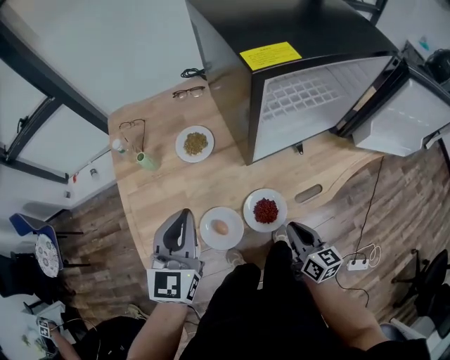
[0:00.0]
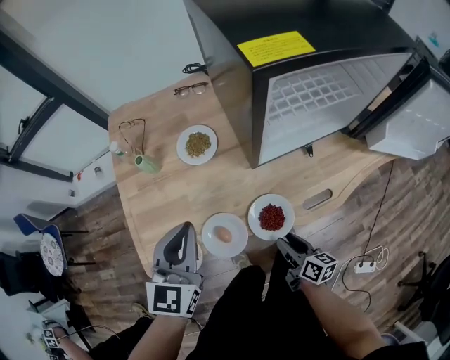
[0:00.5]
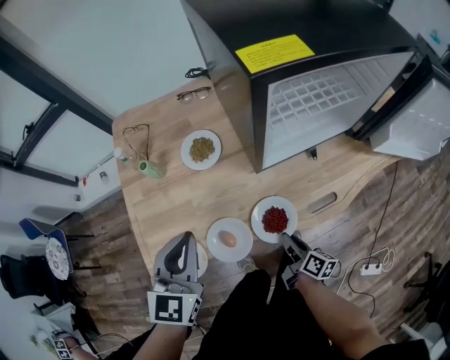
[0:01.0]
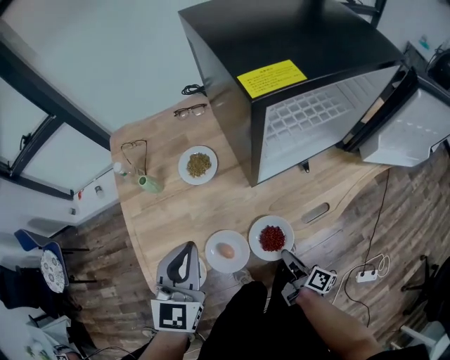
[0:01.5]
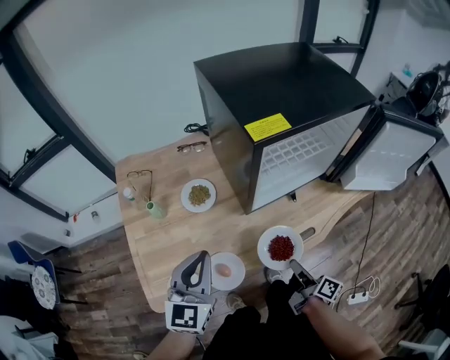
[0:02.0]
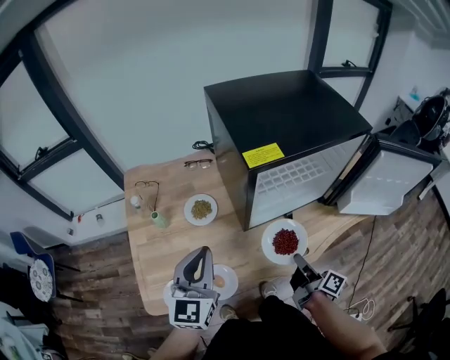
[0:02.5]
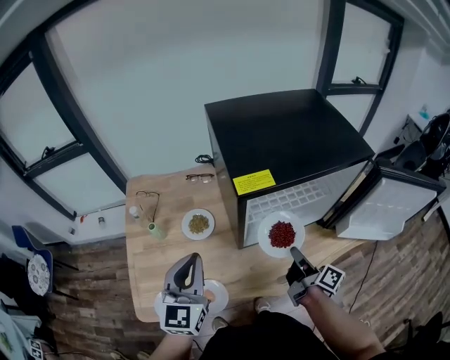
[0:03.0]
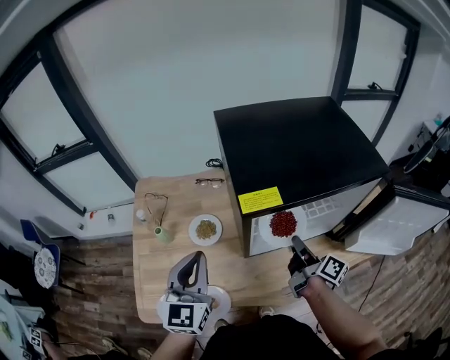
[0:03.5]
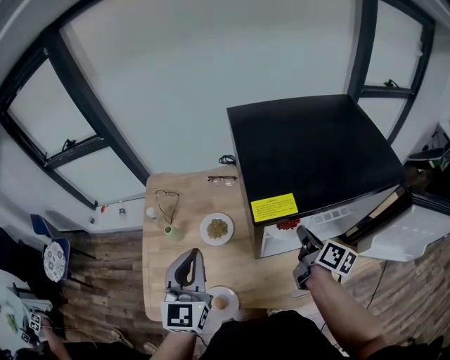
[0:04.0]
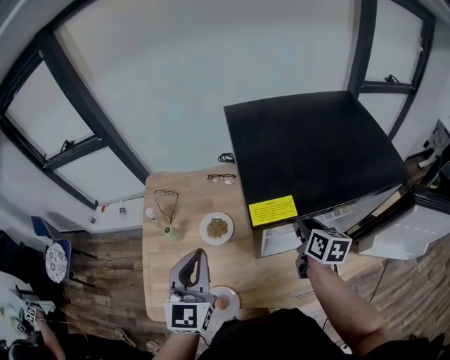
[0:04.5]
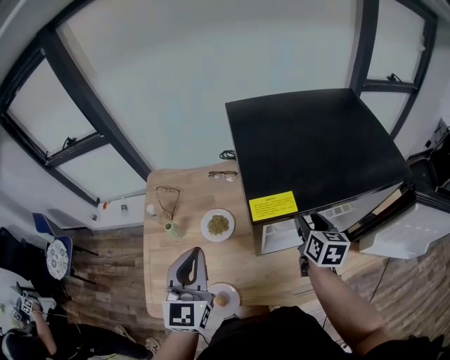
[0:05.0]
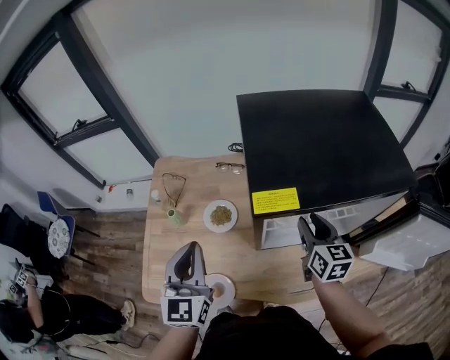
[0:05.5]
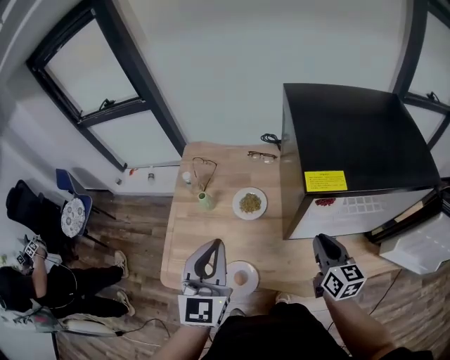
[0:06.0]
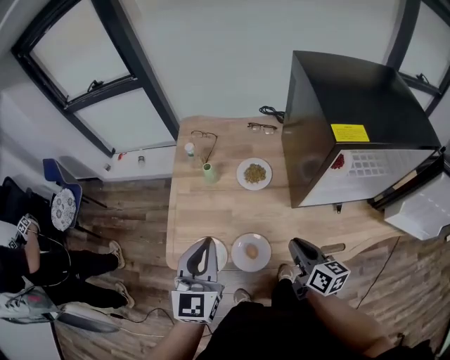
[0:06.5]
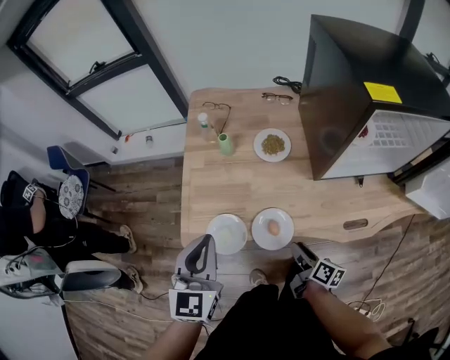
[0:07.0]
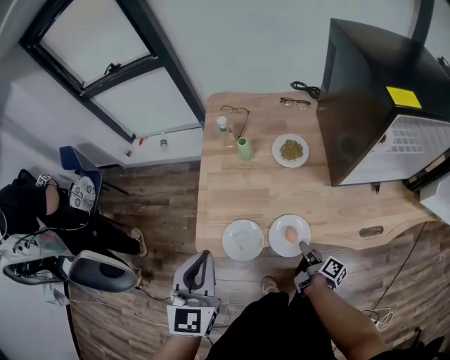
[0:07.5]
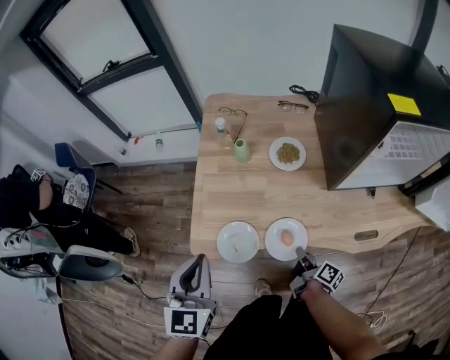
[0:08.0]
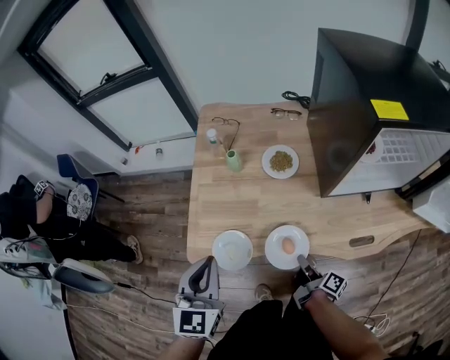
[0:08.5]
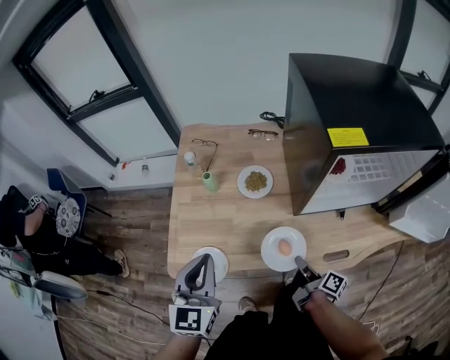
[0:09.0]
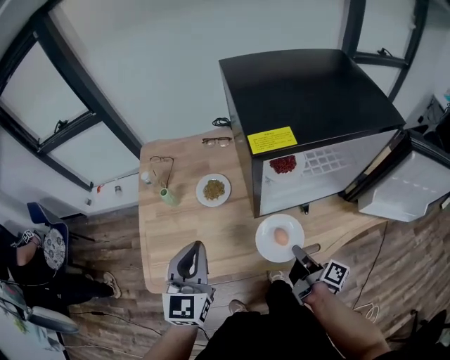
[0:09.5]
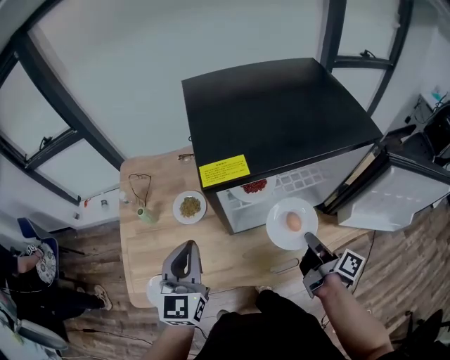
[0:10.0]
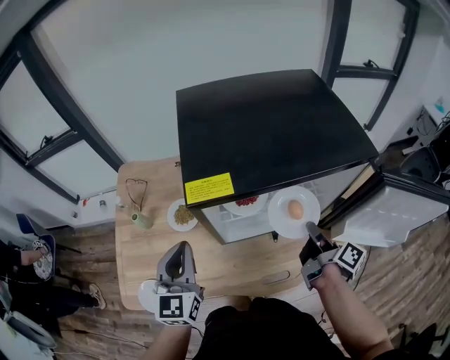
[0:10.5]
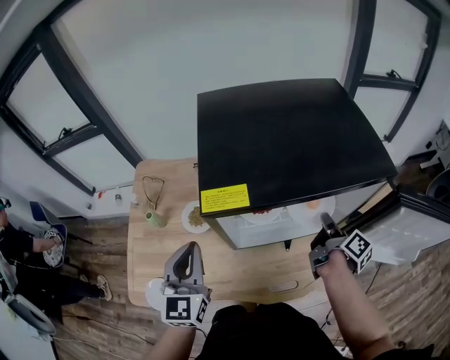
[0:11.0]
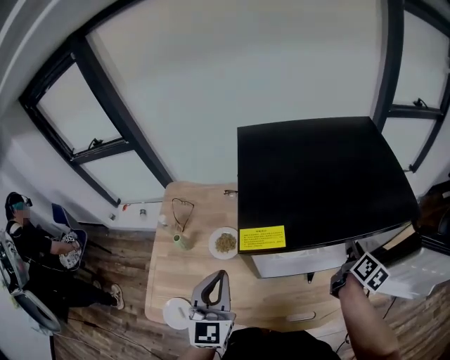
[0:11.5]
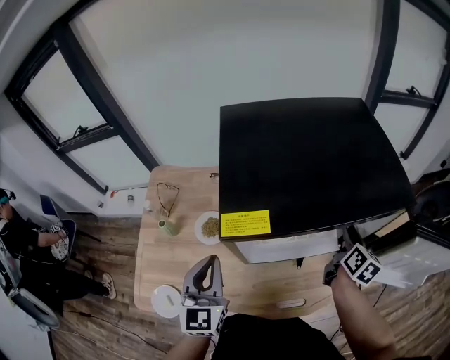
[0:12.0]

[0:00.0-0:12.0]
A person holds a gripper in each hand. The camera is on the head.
0:00.0 to 0:02.0: The right gripper goes downward and returns, roughly 10 cm each way, twists approximately 40 degrees clockwise, seen from behind, and opens and closes again.
0:02.0 to 0:04.0: The left gripper is displaced forward and upward by about 15 cm, and swivels about 20 degrees. Meanwhile the right gripper is displaced forward and upward by roughly 30 cm.
0:04.0 to 0:06.0: The left gripper goes approximately 5 cm backward; the right gripper heads backward and to the left, covering roughly 10 cm, swivels about 40 degrees, and opens, then closes once more.
0:06.0 to 0:08.0: The right gripper moves downward, to the left and backward, some 35 cm, twists approximately 60 degrees clockwise, seen from behind, and opens, then closes once more. Meanwhile the left gripper travels to the left, backward and downward by some 25 cm.
0:08.0 to 0:10.0: The left gripper shifts some 35 cm to the right and forward, while the right gripper shifts approximately 40 cm to the right and upward.
0:10.0 to 0:12.0: The right gripper heads forward and to the right, covering approximately 20 cm, twists roughly 40 degrees counterclockwise, seen from behind, and opens its fingers.

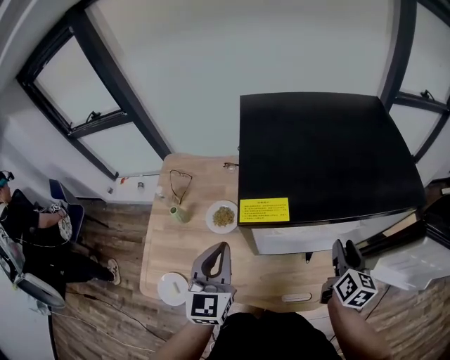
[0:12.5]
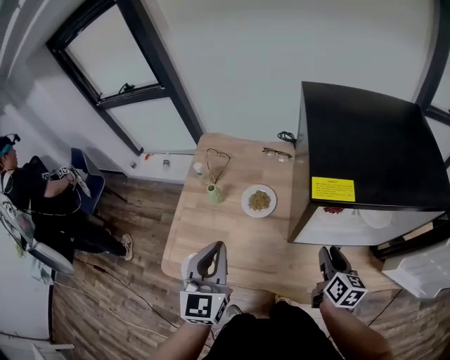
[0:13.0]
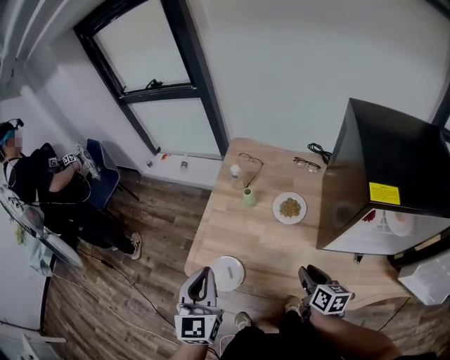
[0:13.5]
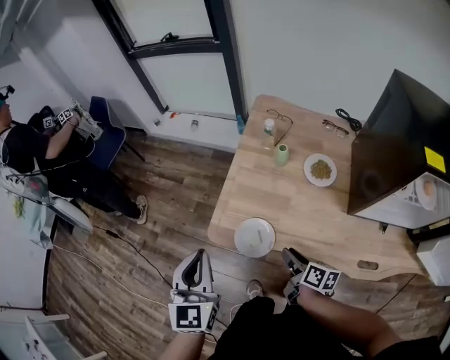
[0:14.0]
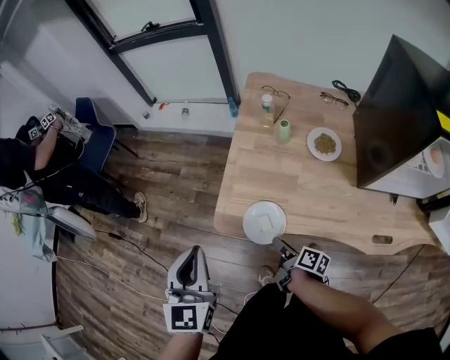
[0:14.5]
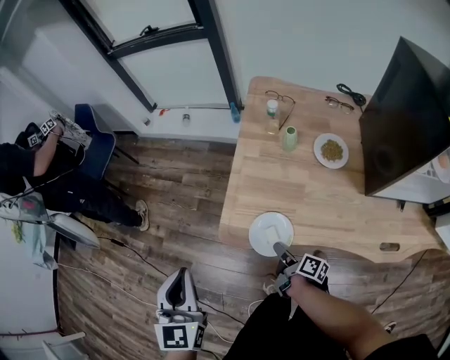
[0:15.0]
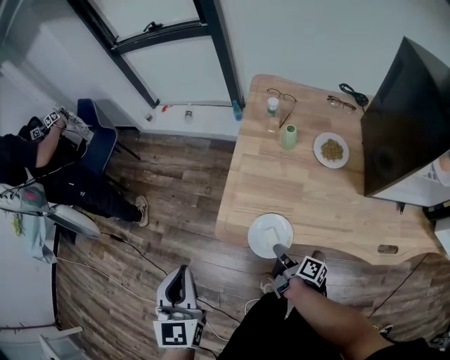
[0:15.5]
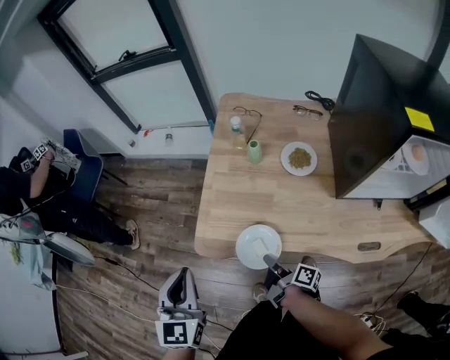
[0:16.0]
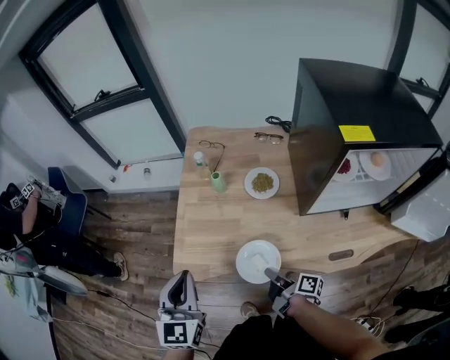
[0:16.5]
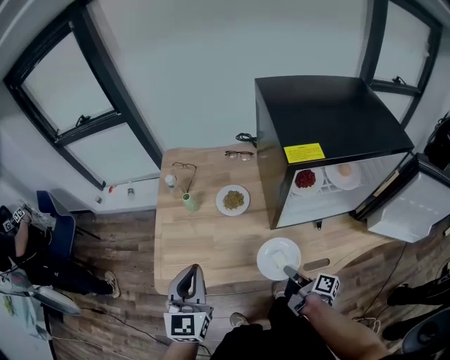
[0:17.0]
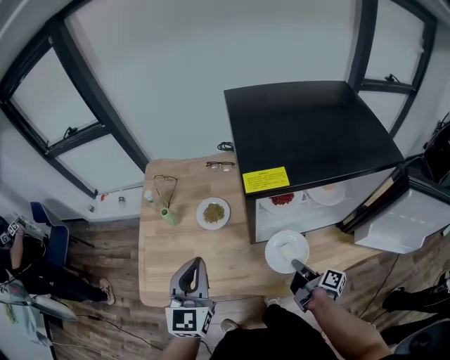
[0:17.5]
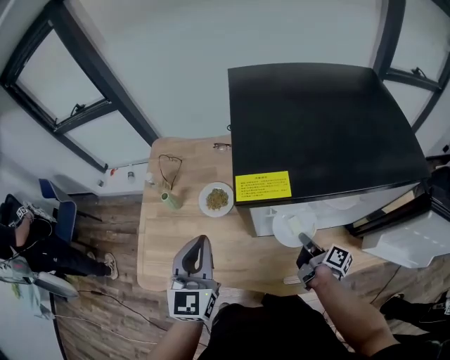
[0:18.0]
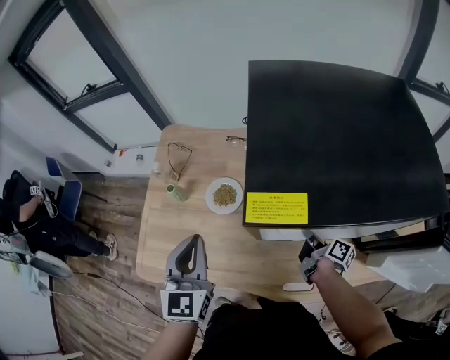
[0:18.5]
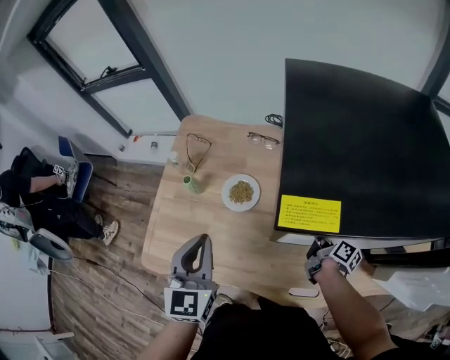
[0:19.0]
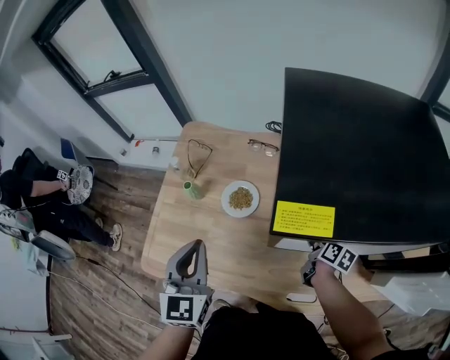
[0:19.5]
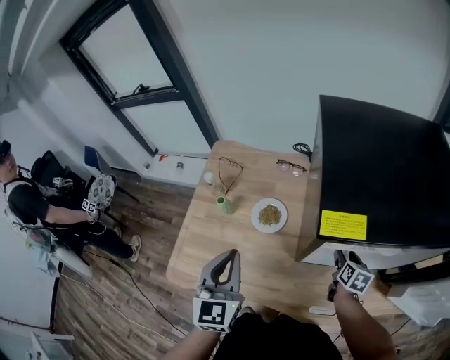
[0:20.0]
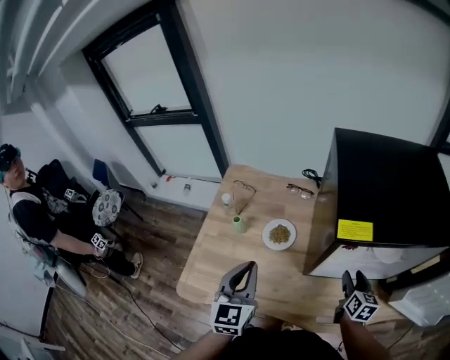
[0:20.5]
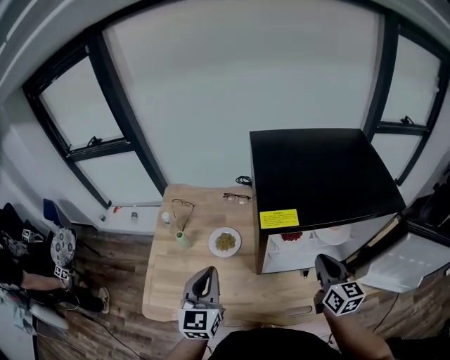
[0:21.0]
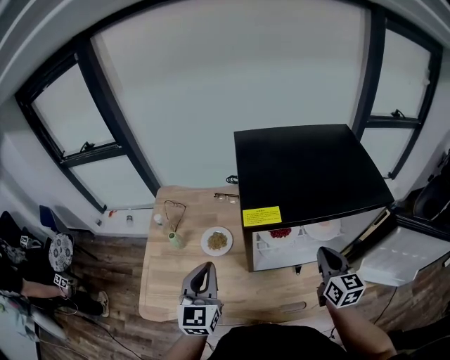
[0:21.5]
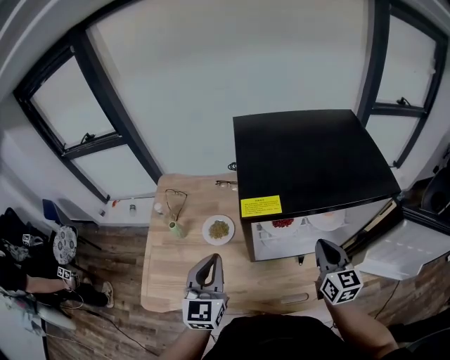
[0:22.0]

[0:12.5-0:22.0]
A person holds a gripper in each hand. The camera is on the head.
0:12.5 to 0:14.5: Both grippers are carried roughly 50 cm. The left gripper rotates some 20 degrees; the right gripper rotates some 60 degrees.
0:14.5 to 0:16.5: The left gripper shifts about 15 cm to the right, while the right gripper goes about 15 cm to the right and upward, and closes its fingers.
0:16.5 to 0:18.0: The right gripper goes about 35 cm to the right. The left gripper is displaced to the right and forward by approximately 30 cm.
0:18.0 to 0:20.0: The right gripper heads forward, covering approximately 5 cm, twists some 50 degrees counterclockwise, seen from behind, and opens up. Meanwhile the left gripper heads to the left, covering roughly 5 cm.
0:20.0 to 0:22.0: The left gripper goes approximately 10 cm to the right; the right gripper heads upward, covering roughly 20 cm, swivels roughly 40 degrees, and closes up.

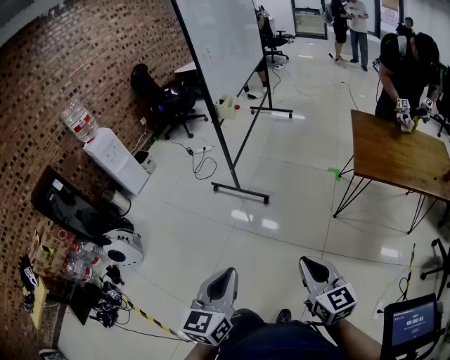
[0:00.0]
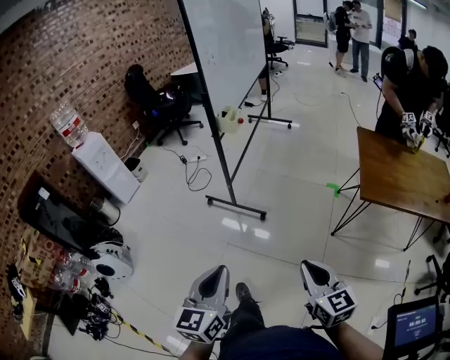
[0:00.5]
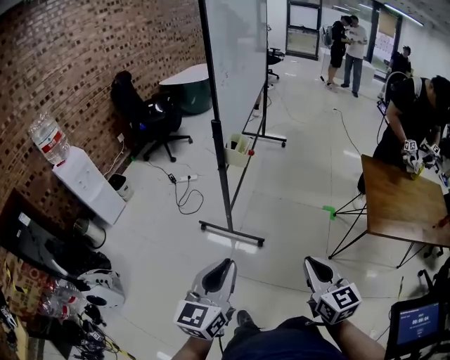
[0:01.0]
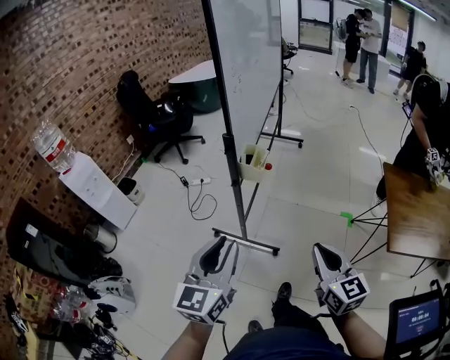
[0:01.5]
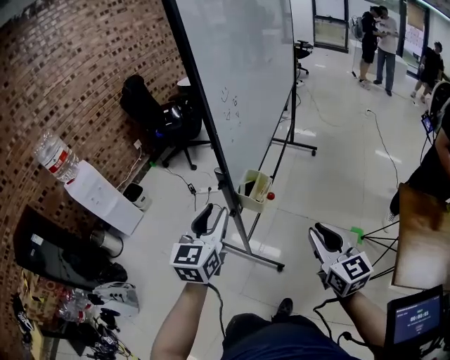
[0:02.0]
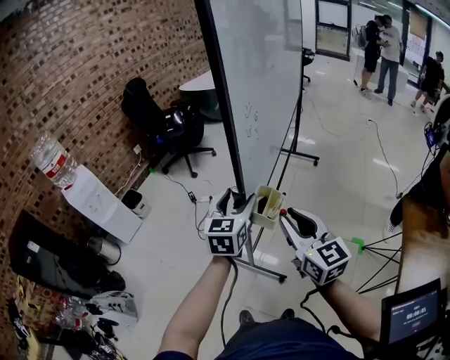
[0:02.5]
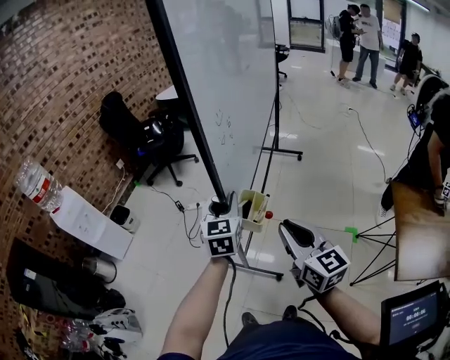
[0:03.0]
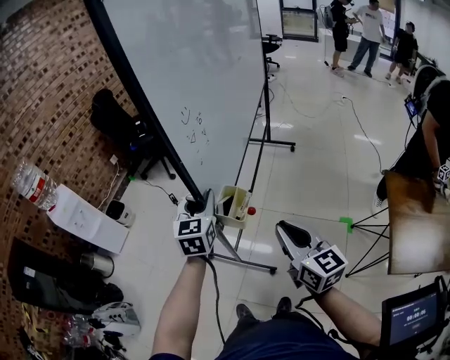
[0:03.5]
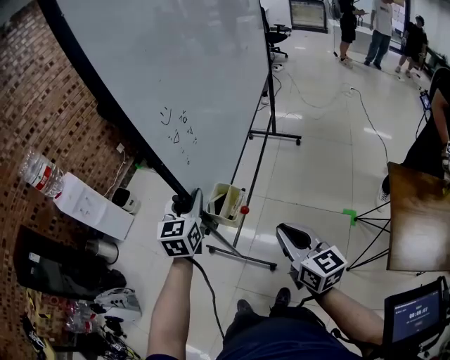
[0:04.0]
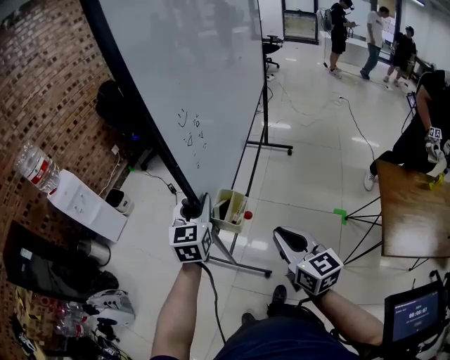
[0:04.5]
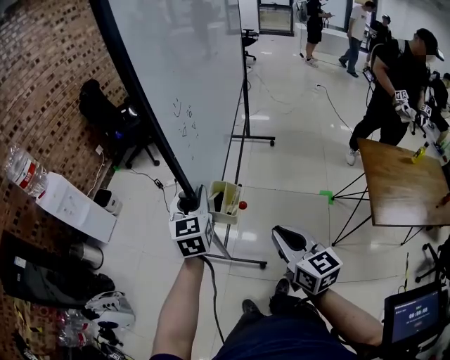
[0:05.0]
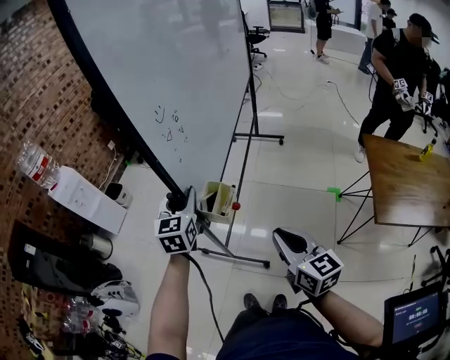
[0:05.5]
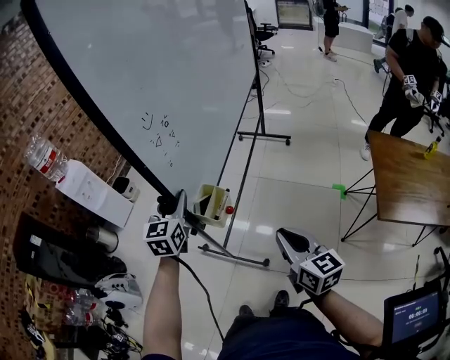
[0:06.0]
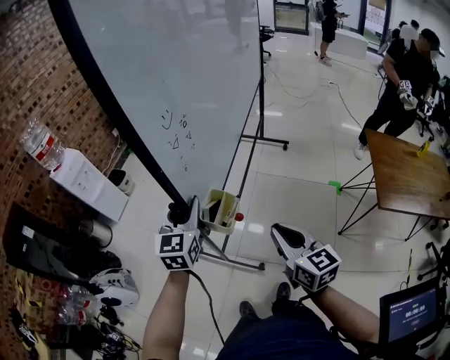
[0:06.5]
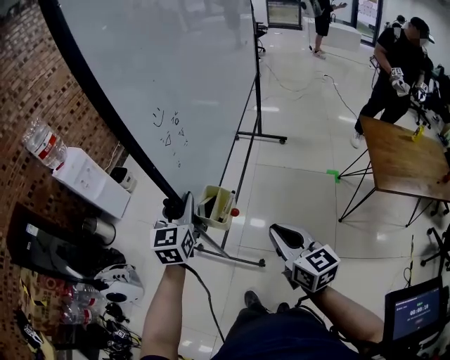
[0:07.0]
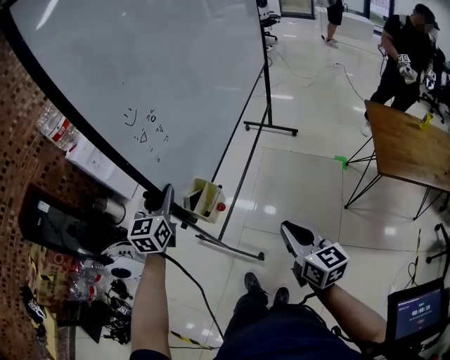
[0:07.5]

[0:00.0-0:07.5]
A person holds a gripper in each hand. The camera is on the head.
0:00.0 to 0:02.0: The pair of grippers is taken forward, some 60 cm. The left gripper opens up.
0:02.0 to 0:04.0: The left gripper goes approximately 10 cm forward, and opens, then closes again.
0:04.0 to 0:05.5: Both grippers travel together backward, roughly 15 cm.
0:05.5 to 0:07.5: The right gripper shifts some 15 cm backward, while the left gripper travels backward and to the left by some 25 cm.
